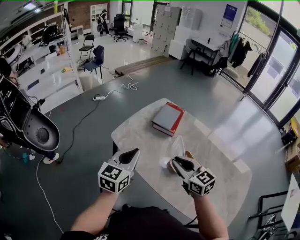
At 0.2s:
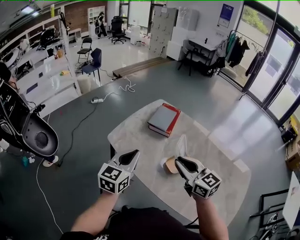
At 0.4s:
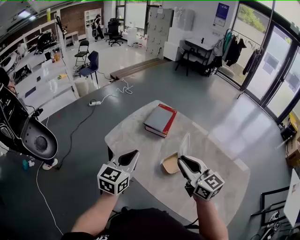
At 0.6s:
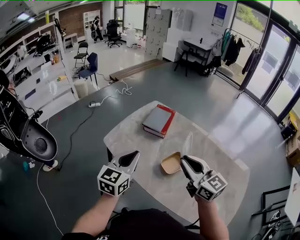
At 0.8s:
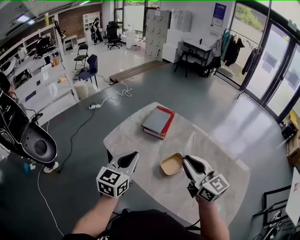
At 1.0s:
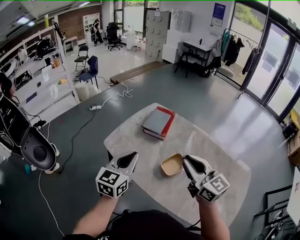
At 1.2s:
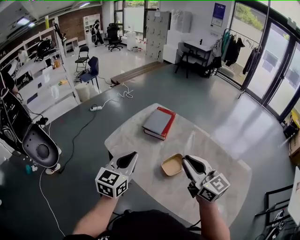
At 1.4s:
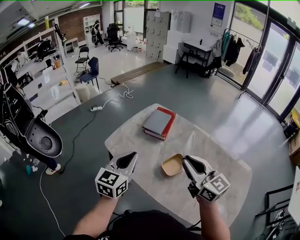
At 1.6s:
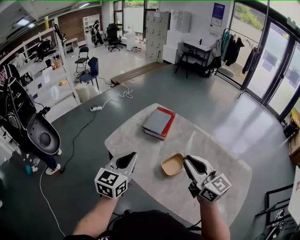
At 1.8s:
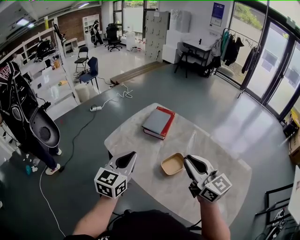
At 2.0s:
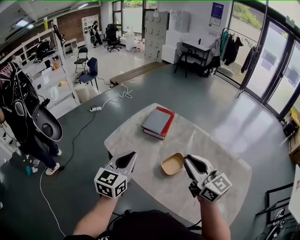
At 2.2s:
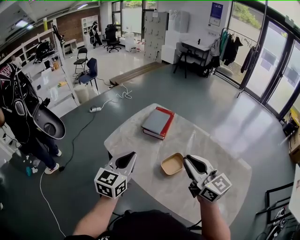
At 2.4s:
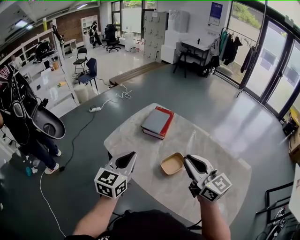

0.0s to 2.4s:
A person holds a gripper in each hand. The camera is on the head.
0.0s to 1.2s: The left gripper heads to the right, covering approximately 5 cm, while the right gripper shifts about 15 cm upward and to the right.
1.2s to 2.4s: The grippers stay close to where they were, moving slightly.

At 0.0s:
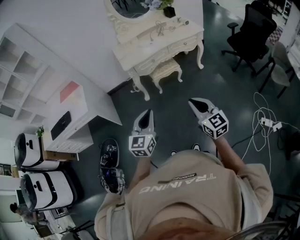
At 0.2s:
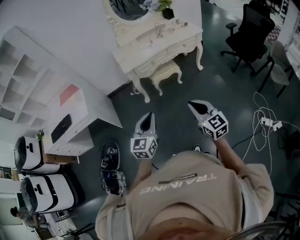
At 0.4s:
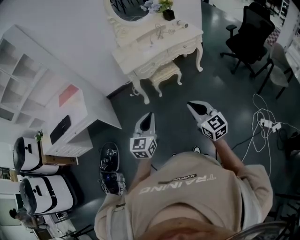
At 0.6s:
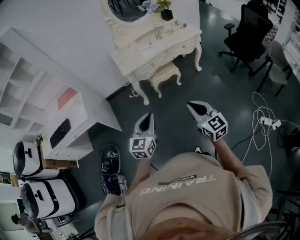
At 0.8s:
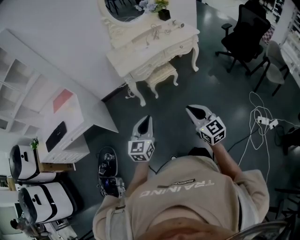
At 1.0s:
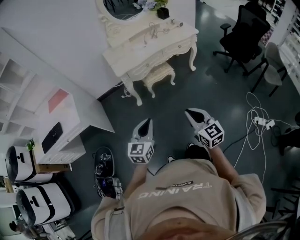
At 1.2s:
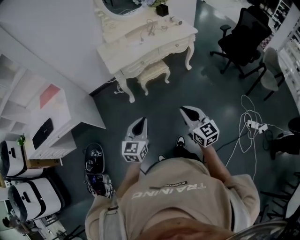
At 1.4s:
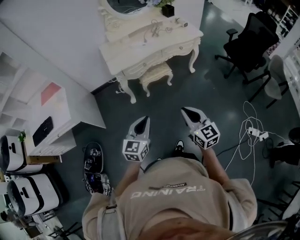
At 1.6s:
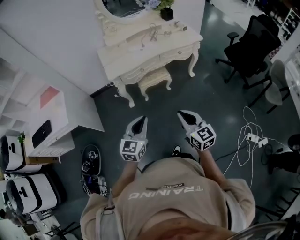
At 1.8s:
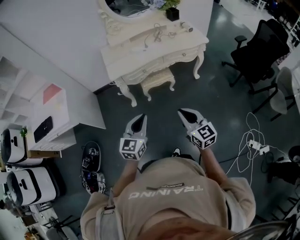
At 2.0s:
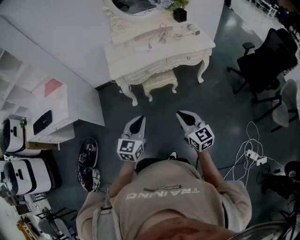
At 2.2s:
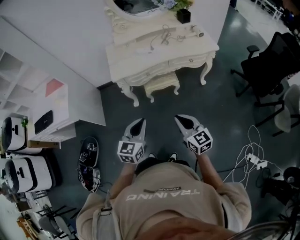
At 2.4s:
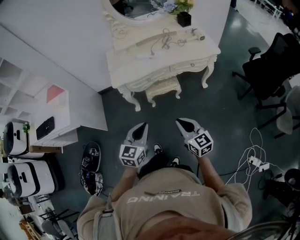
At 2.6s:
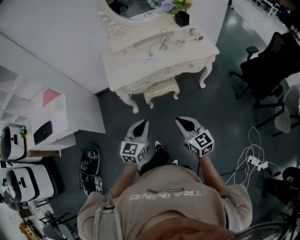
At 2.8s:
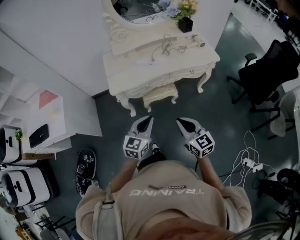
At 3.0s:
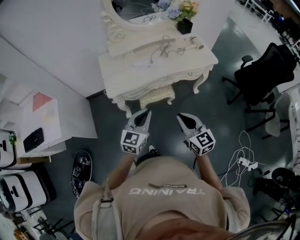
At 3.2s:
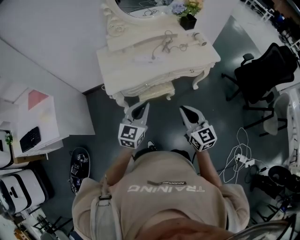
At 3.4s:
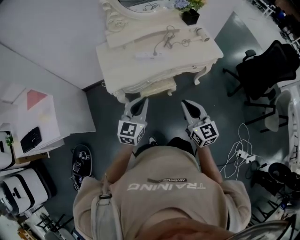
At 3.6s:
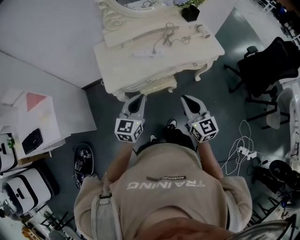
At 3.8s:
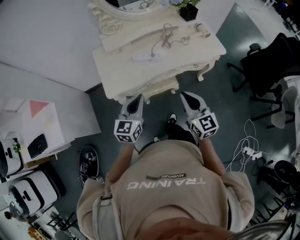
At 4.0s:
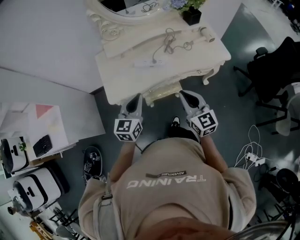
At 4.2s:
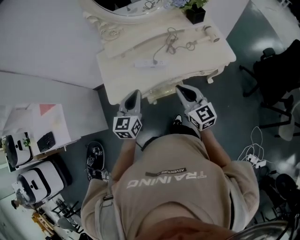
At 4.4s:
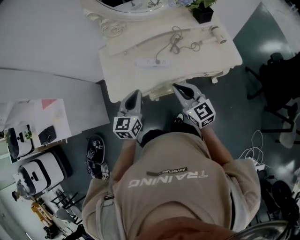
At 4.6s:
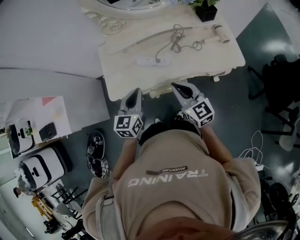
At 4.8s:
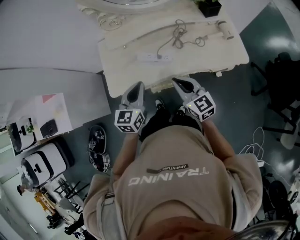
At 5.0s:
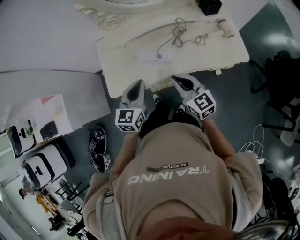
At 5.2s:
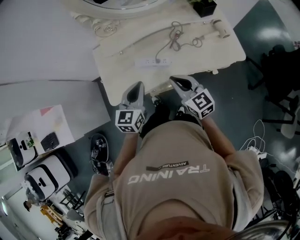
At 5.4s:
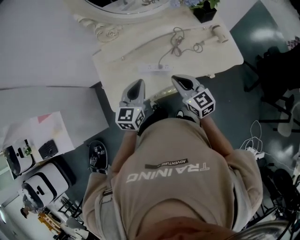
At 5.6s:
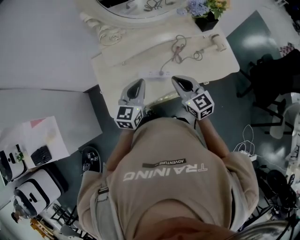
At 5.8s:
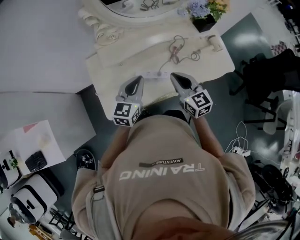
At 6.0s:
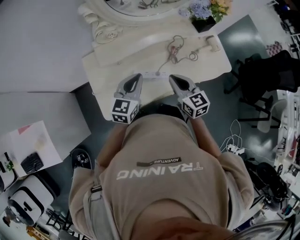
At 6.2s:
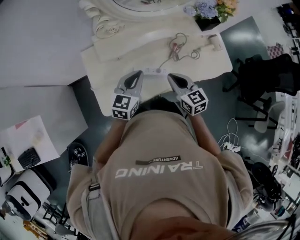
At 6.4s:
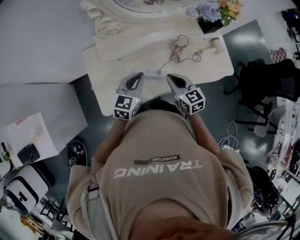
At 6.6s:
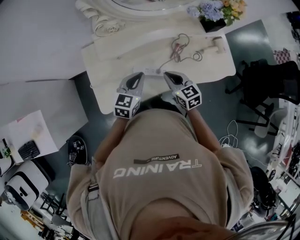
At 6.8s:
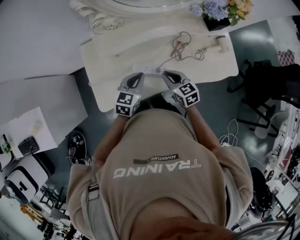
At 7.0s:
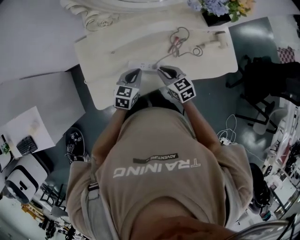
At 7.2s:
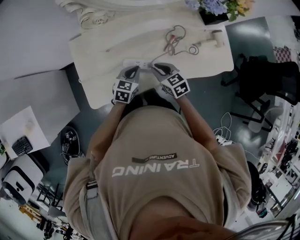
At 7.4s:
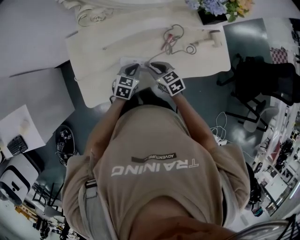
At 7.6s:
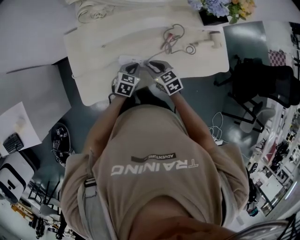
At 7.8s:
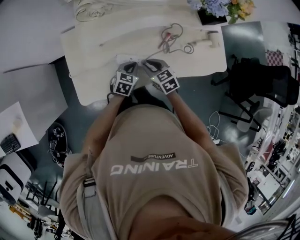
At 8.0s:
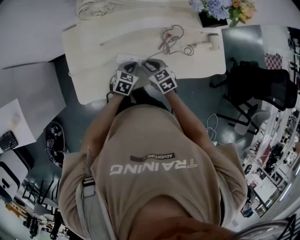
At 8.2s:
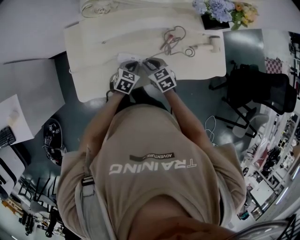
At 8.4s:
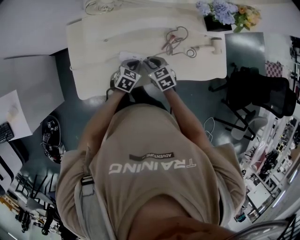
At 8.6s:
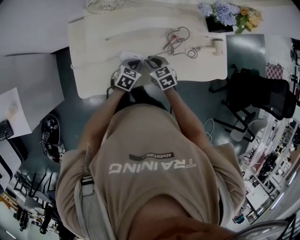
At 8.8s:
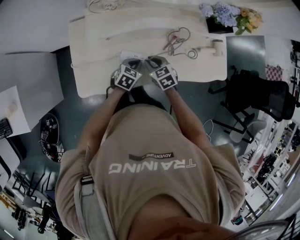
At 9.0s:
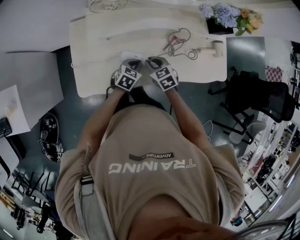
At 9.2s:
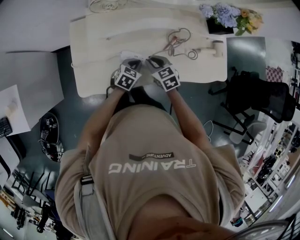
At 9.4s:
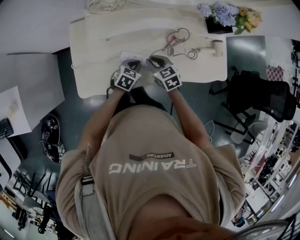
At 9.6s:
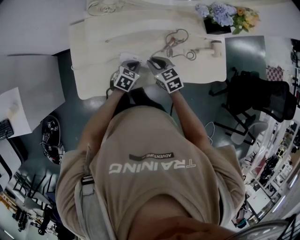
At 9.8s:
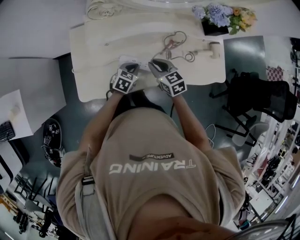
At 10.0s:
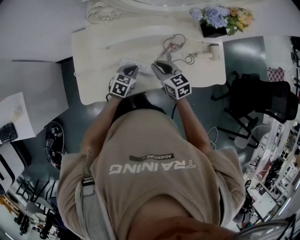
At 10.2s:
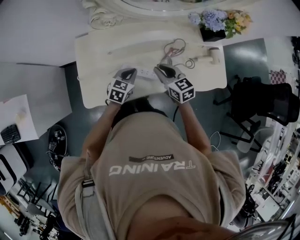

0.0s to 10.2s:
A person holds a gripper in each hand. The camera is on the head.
0.0s to 1.4s: The left gripper goes roughly 15 cm forward and downward. The right gripper shifts about 15 cm forward.
1.4s to 3.0s: Both grippers move forward, roughly 30 cm.
3.0s to 4.4s: Both grippers move forward, about 30 cm. The left gripper changes its angle by approximately 20 degrees.
4.4s to 5.8s: Both grippers travel together forward, some 20 cm.
5.8s to 7.2s: The grippers both shift downward by some 20 cm. The right gripper rotates roughly 30 degrees. The left gripper turns by some 20 degrees.
7.2s to 8.8s: The grippers move only a little.
8.8s to 10.2s: The left gripper shifts roughly 5 cm upward, while the right gripper goes roughly 10 cm upward, and swivels roughly 20 degrees.

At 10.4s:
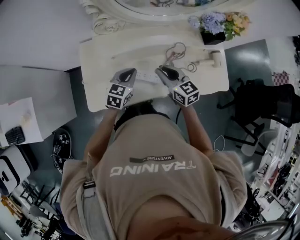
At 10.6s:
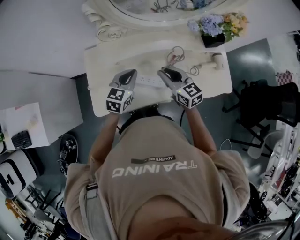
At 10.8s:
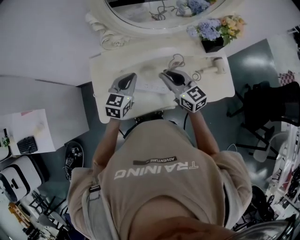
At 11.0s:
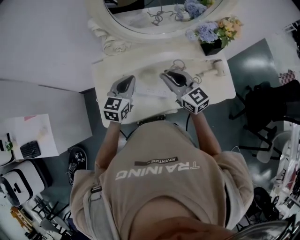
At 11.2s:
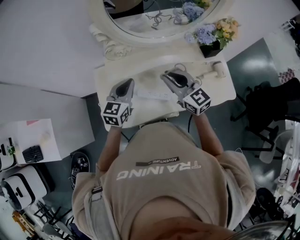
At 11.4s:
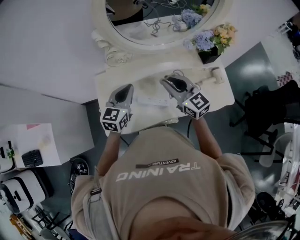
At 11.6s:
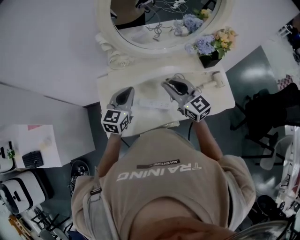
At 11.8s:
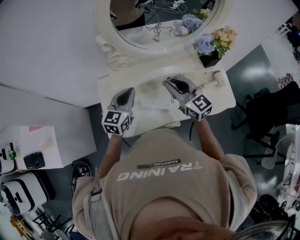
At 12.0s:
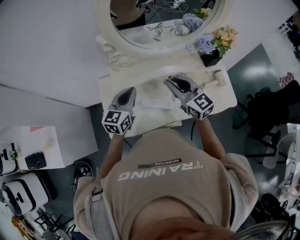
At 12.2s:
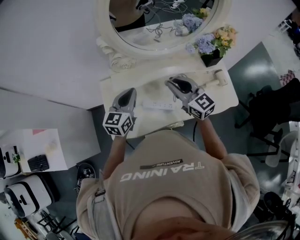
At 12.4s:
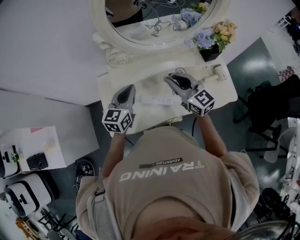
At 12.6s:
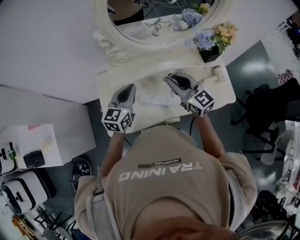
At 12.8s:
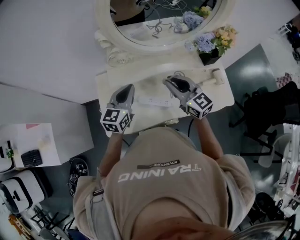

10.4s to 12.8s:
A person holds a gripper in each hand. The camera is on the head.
10.4s to 11.6s: Both grippers travel together upward, about 15 cm. The right gripper rotates roughly 20 degrees.
11.6s to 12.8s: There are only small adjustments of the grippers.

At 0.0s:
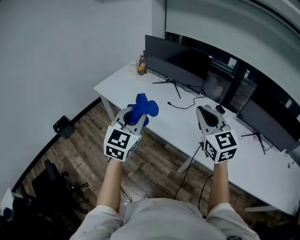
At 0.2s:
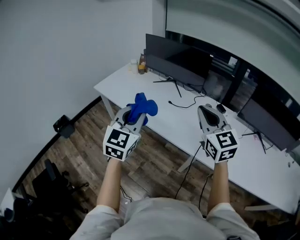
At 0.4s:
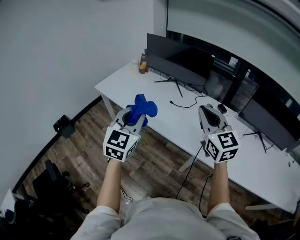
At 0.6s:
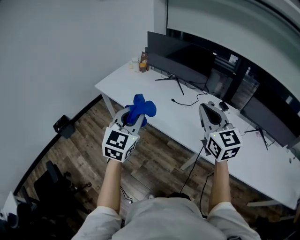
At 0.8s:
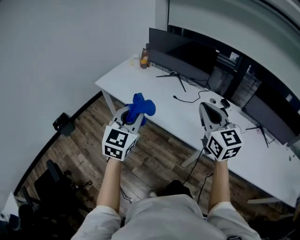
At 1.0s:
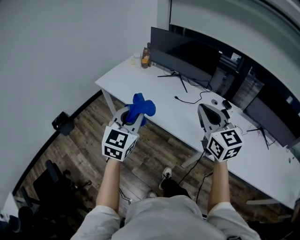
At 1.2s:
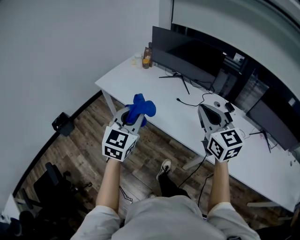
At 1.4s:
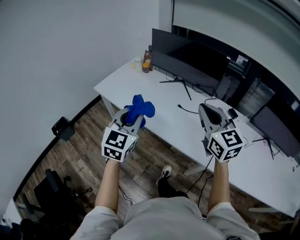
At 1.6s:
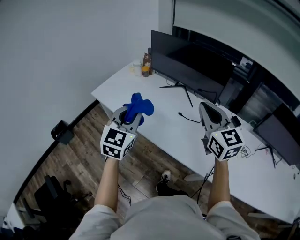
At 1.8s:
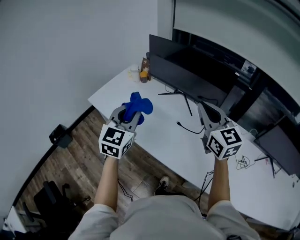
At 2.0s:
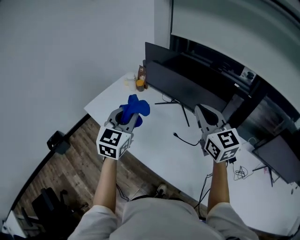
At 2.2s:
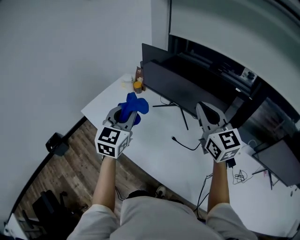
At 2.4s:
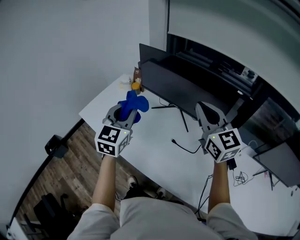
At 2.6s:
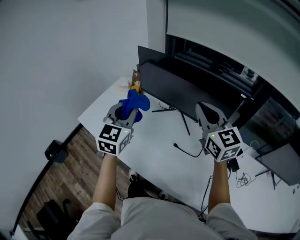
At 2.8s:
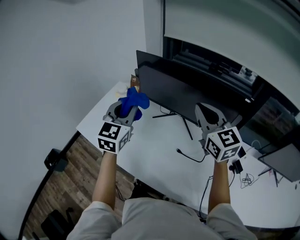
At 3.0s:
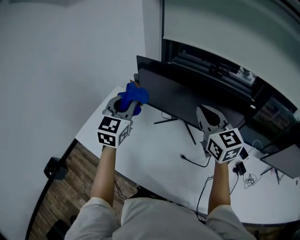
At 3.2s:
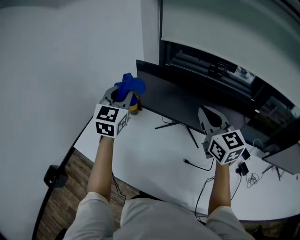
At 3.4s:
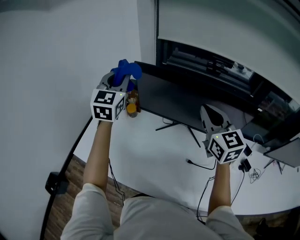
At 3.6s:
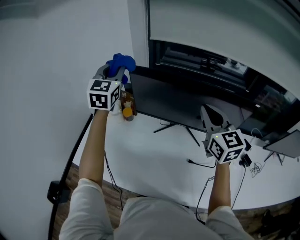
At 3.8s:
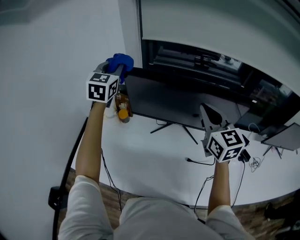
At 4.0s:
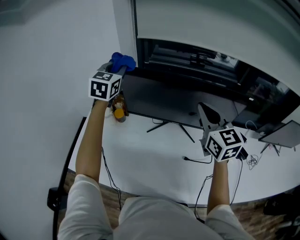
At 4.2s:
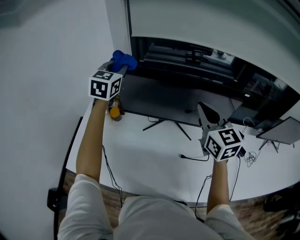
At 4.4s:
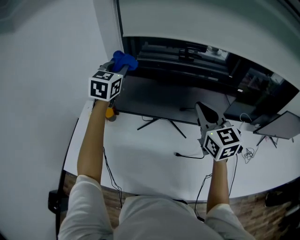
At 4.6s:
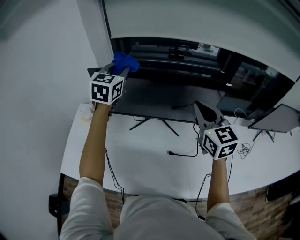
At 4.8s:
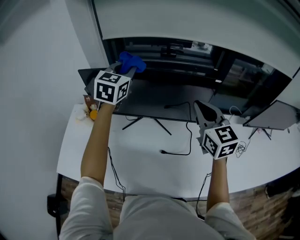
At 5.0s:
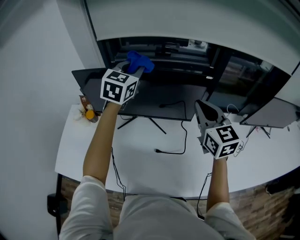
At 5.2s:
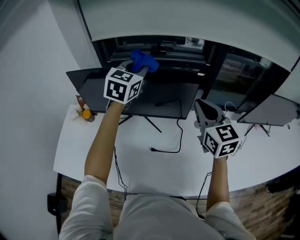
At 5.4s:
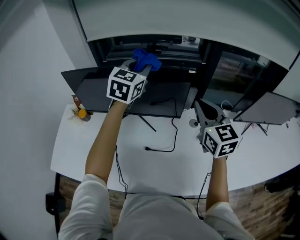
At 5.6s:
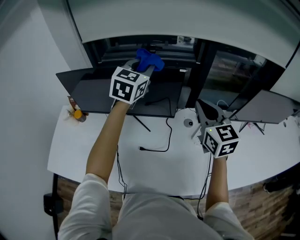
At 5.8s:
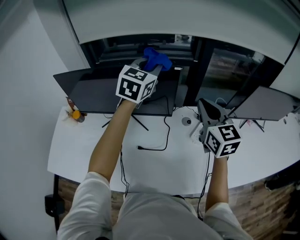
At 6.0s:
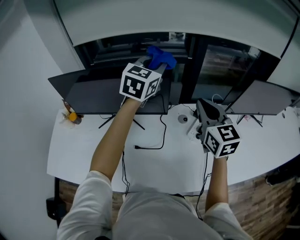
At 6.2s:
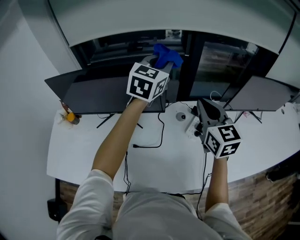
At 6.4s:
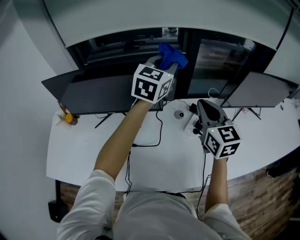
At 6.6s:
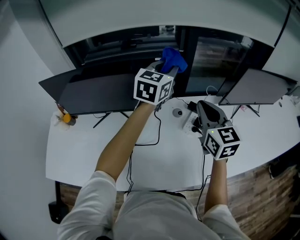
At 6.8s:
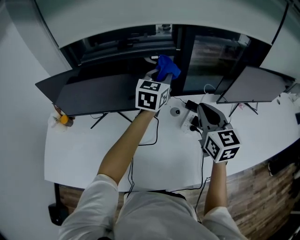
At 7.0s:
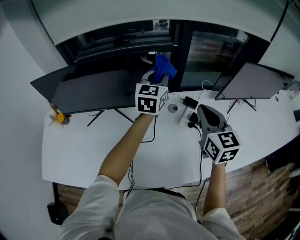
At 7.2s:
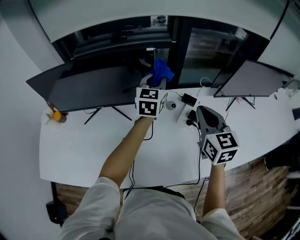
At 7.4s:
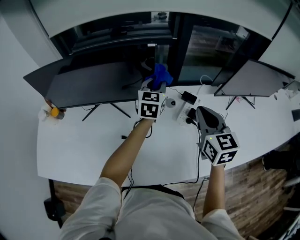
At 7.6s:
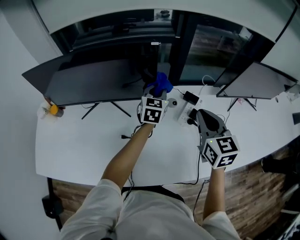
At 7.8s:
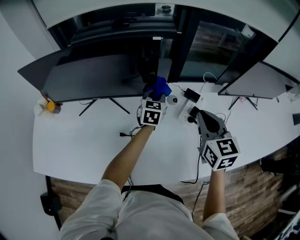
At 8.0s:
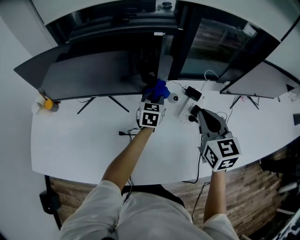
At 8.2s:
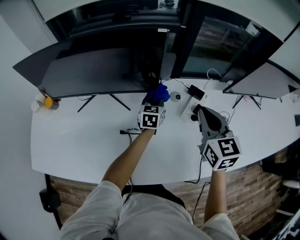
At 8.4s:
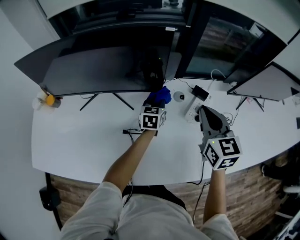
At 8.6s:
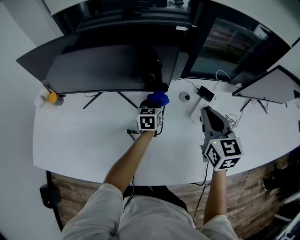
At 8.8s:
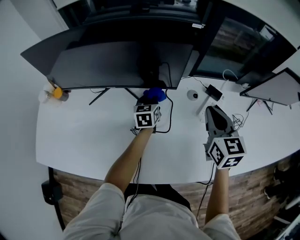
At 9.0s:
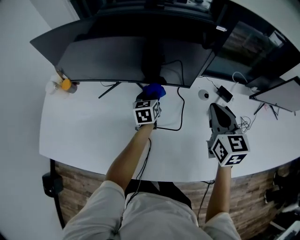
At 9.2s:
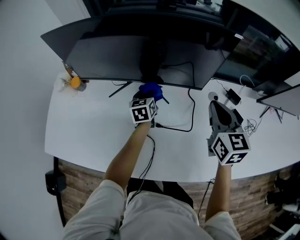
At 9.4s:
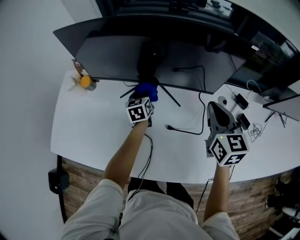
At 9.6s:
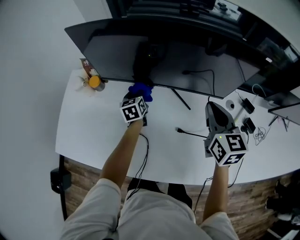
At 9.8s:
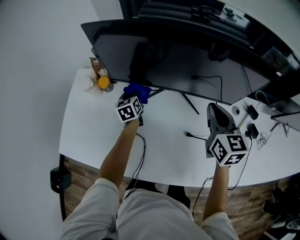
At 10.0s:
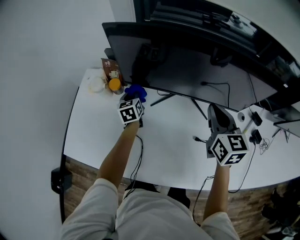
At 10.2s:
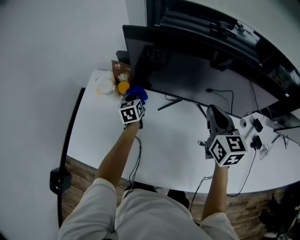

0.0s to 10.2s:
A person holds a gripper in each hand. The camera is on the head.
0.0s to 1.4s: The left gripper heads forward, to the left and downward, covering some 15 cm. Meanwhile the right gripper shifts some 15 cm forward and to the left.
1.4s to 3.0s: The pair of grippers is taken forward, approximately 50 cm.
3.0s to 4.4s: The right gripper shifts by some 5 cm, and turns by roughly 20 degrees. The left gripper is displaced forward by about 25 cm.
4.4s to 5.8s: The two grippers go roughly 35 cm to the right.
5.8s to 7.2s: The right gripper moves to the right and downward, about 10 cm. The left gripper moves downward and to the right, approximately 20 cm.
7.2s to 8.8s: The left gripper goes approximately 30 cm downward and to the left, and rotates some 30 degrees, while the right gripper heads downward and to the left, covering roughly 10 cm.
8.8s to 10.2s: Both grippers move to the left, some 40 cm. The left gripper rotates approximately 20 degrees.
